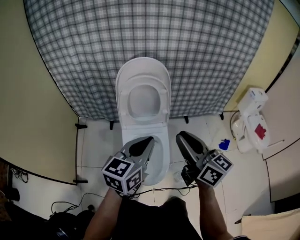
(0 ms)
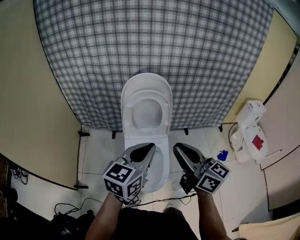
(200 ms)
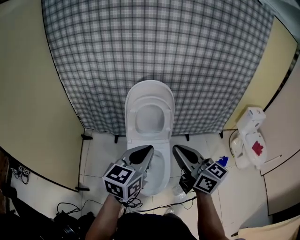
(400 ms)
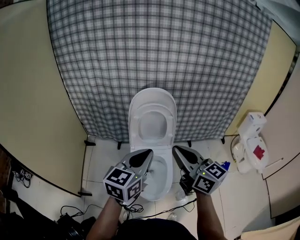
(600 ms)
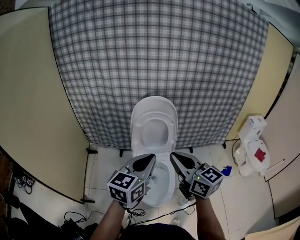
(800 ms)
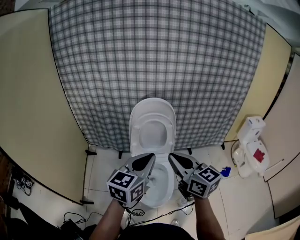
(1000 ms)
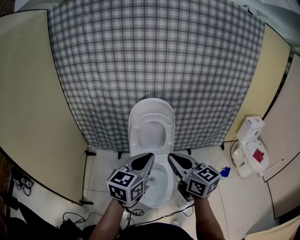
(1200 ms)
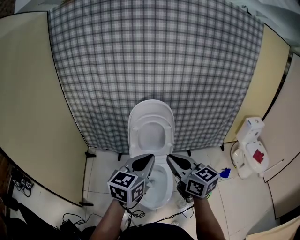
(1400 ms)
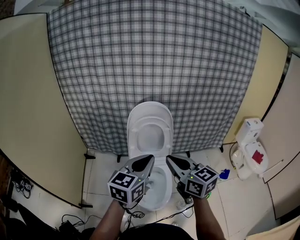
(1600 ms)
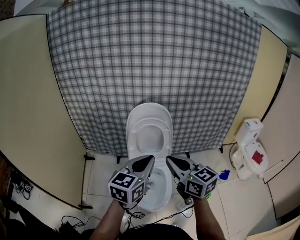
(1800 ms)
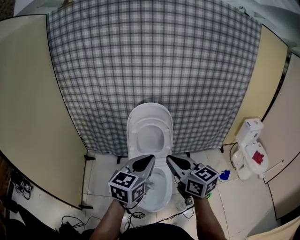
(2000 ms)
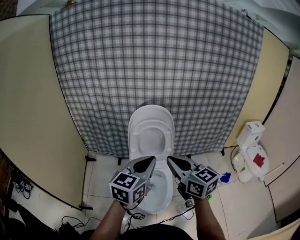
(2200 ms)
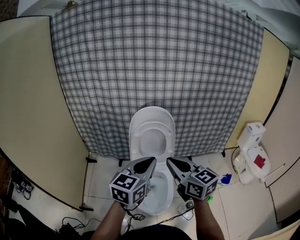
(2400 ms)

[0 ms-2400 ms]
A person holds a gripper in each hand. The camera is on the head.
0 ms to 1200 ms: The left gripper heads upward and backward, covering about 10 cm. The right gripper travels upward by approximately 10 cm.
1200 ms to 2400 ms: The right gripper travels to the left and back again, roughly 10 cm each way.

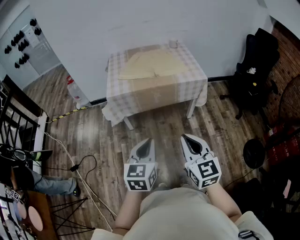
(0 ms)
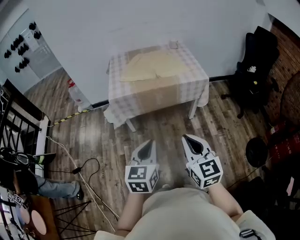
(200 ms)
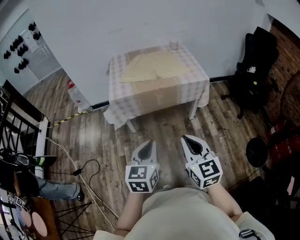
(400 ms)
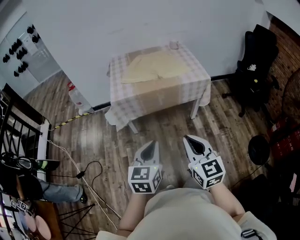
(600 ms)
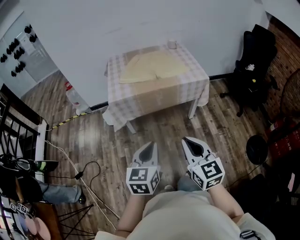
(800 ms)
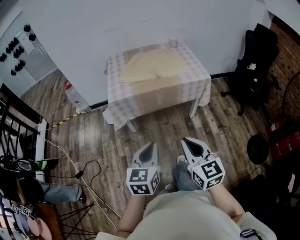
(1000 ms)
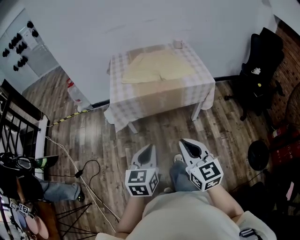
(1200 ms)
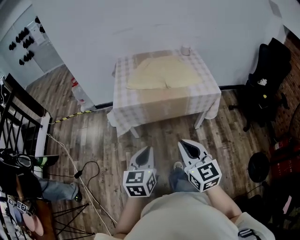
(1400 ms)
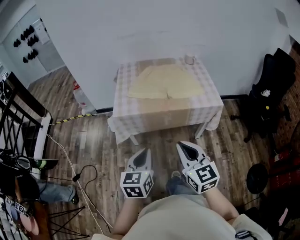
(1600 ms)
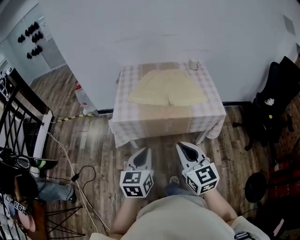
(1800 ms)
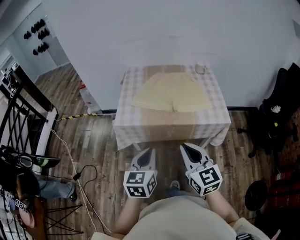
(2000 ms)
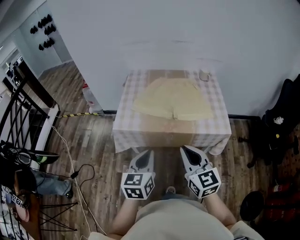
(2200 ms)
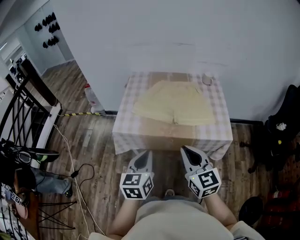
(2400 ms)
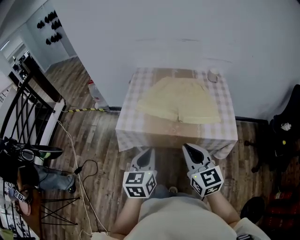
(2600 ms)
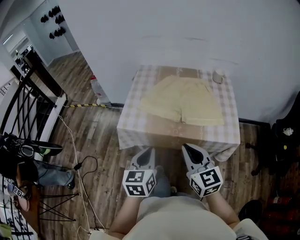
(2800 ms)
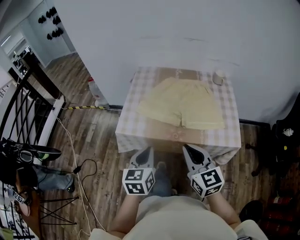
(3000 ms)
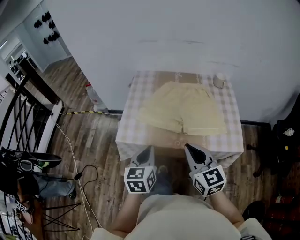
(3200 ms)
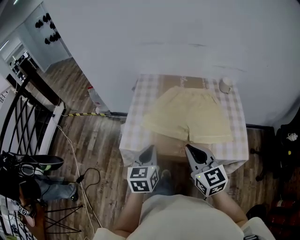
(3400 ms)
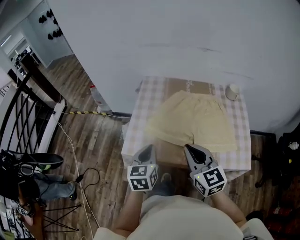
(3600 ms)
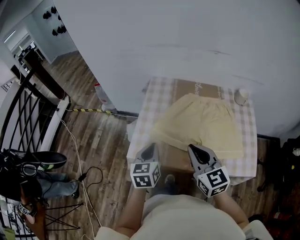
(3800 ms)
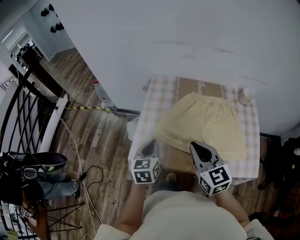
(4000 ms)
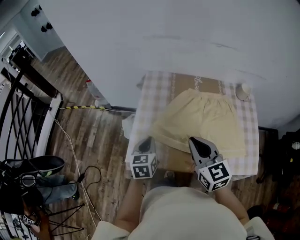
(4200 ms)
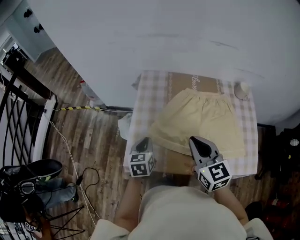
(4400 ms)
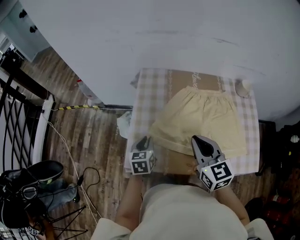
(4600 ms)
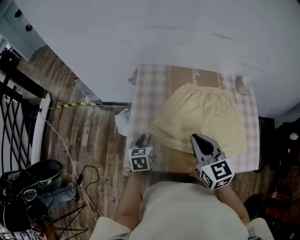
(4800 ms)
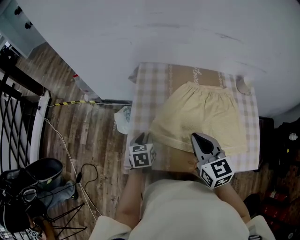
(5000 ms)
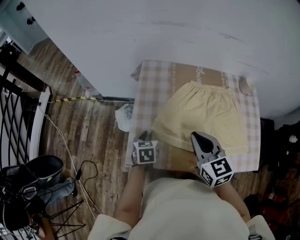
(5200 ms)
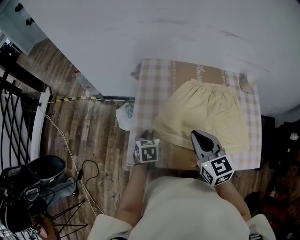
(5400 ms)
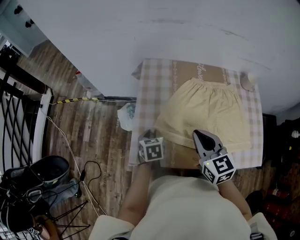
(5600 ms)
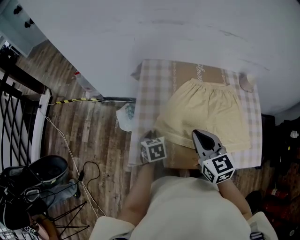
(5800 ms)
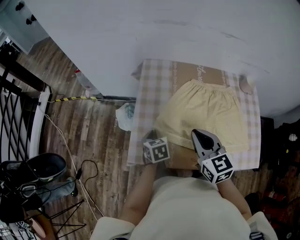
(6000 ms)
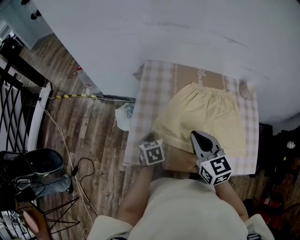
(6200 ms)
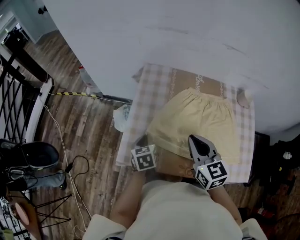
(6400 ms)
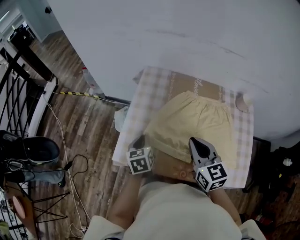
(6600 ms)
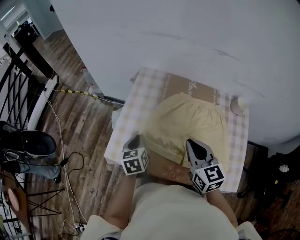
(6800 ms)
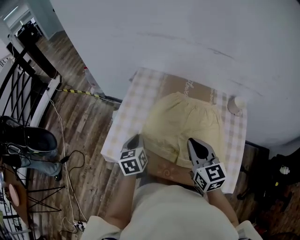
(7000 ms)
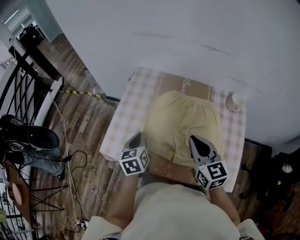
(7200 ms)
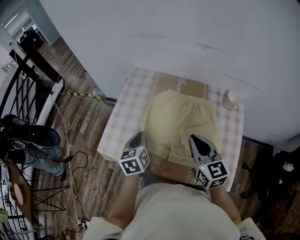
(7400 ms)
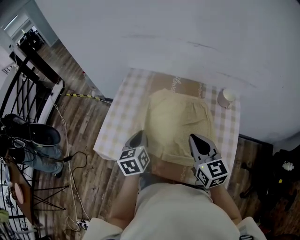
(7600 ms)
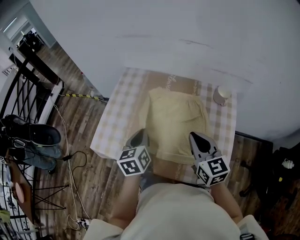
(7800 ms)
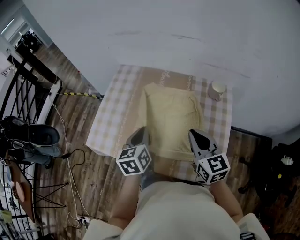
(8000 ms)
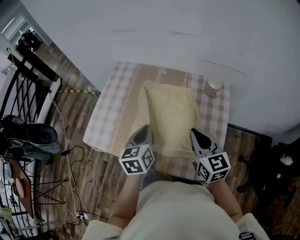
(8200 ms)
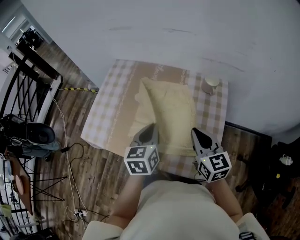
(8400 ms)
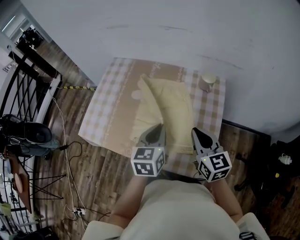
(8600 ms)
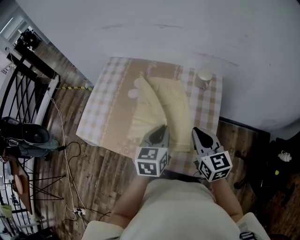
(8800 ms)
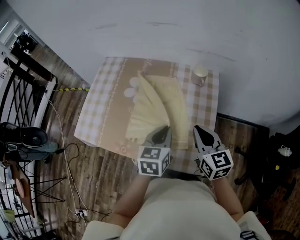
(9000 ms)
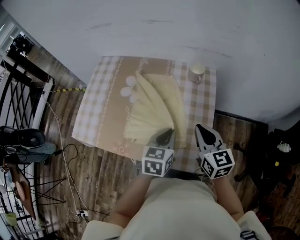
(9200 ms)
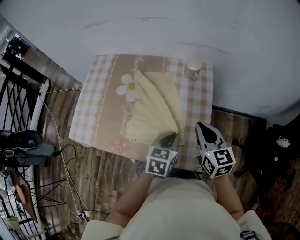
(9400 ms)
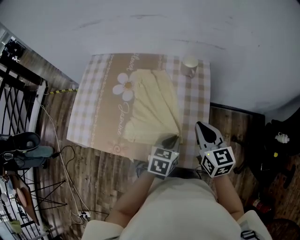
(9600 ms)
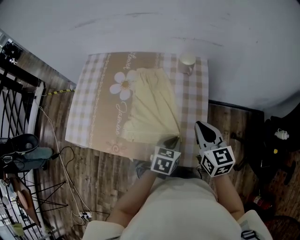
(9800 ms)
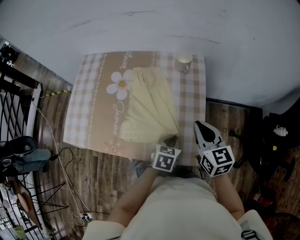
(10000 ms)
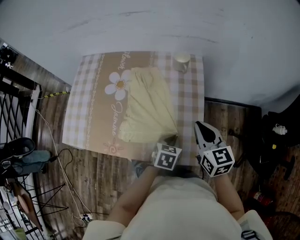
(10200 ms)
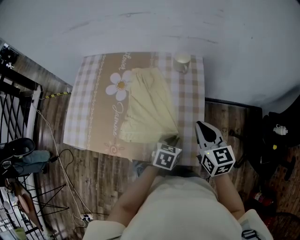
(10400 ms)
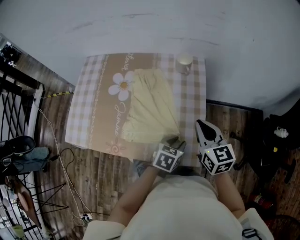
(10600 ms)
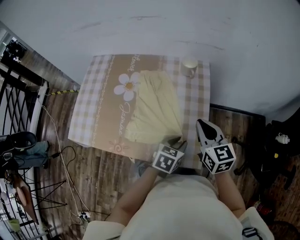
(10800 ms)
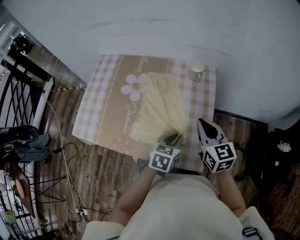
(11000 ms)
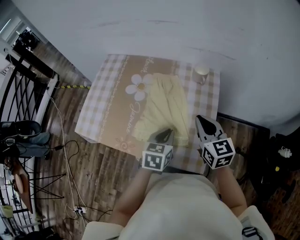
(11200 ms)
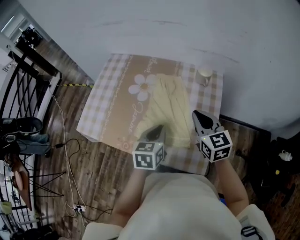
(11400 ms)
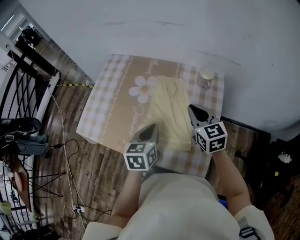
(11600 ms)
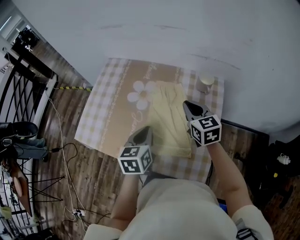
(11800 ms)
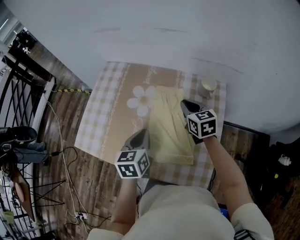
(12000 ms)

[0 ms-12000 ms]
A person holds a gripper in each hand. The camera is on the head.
0 ms to 1600 ms: Both grippers move forward, roughly 15 cm.
1600 ms to 3000 ms: Both grippers move forward, approximately 20 cm.
3000 ms to 4400 ms: The left gripper goes some 30 cm forward and downward, while the right gripper shifts approximately 25 cm forward.
4400 ms to 6000 ms: The left gripper heads downward, covering approximately 5 cm, and opens, then closes once more.
6000 ms to 7600 ms: The left gripper moves to the right, upward and backward, about 20 cm, and changes its angle by about 20 degrees. The right gripper heads to the right, covering some 20 cm.
7600 ms to 9000 ms: The left gripper is displaced to the right by roughly 25 cm, and swivels some 20 degrees. Meanwhile the right gripper is displaced to the right by about 15 cm.
9000 ms to 10400 ms: The left gripper travels downward and to the right by about 15 cm, and rotates approximately 30 degrees. The right gripper heads to the right, covering some 5 cm.
10400 ms to 12000 ms: The right gripper shifts by roughly 25 cm, while the left gripper ends up some 30 cm from where it was, changes its angle by roughly 40 degrees, and opens, then closes again.

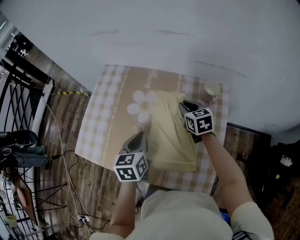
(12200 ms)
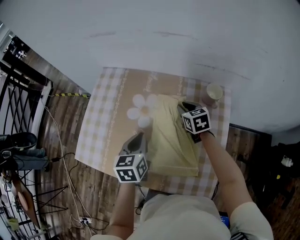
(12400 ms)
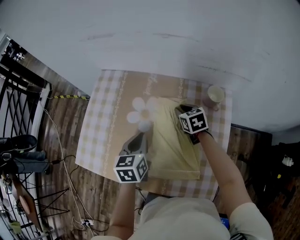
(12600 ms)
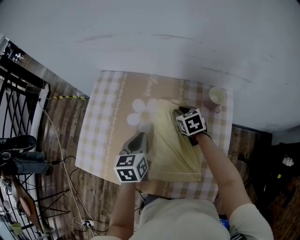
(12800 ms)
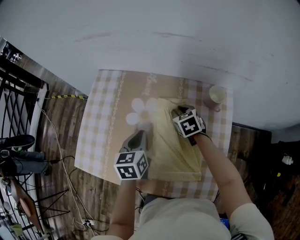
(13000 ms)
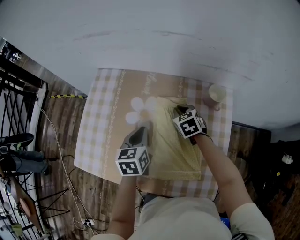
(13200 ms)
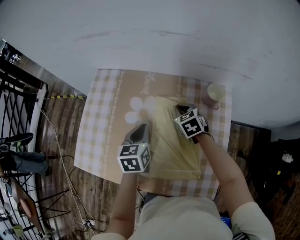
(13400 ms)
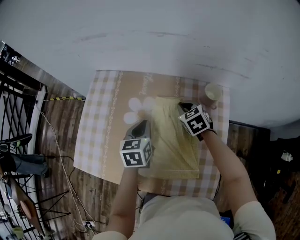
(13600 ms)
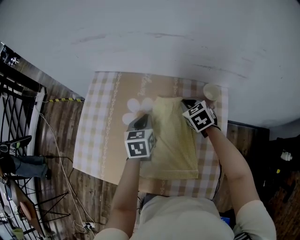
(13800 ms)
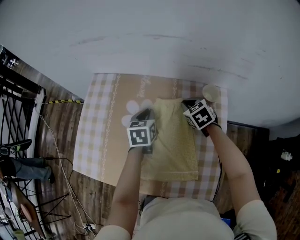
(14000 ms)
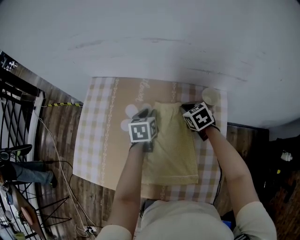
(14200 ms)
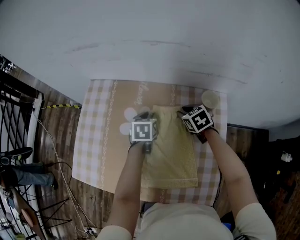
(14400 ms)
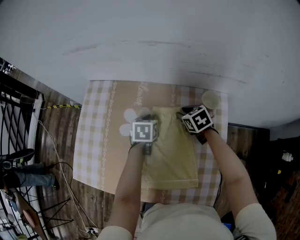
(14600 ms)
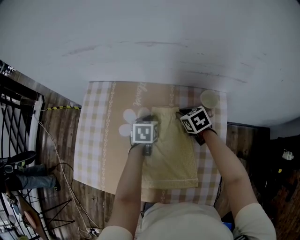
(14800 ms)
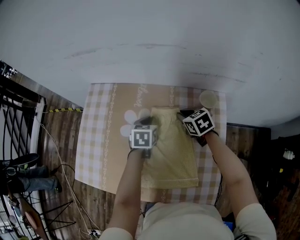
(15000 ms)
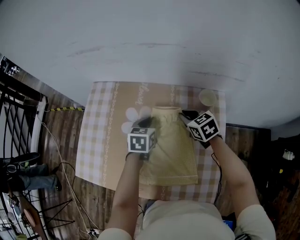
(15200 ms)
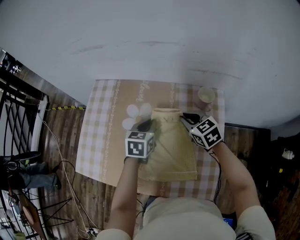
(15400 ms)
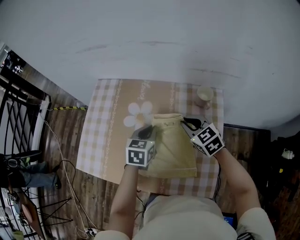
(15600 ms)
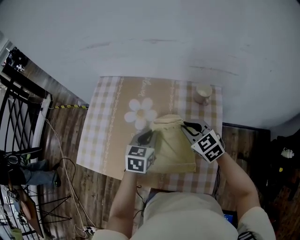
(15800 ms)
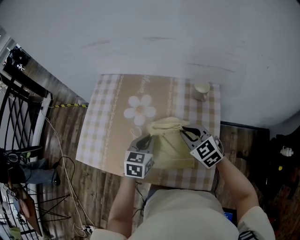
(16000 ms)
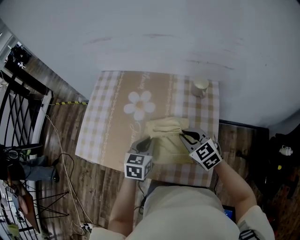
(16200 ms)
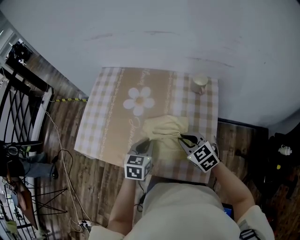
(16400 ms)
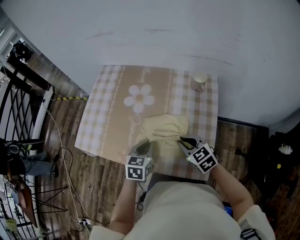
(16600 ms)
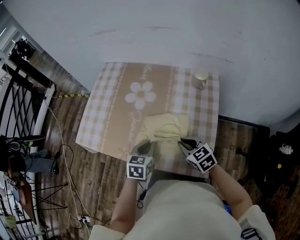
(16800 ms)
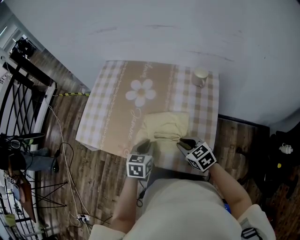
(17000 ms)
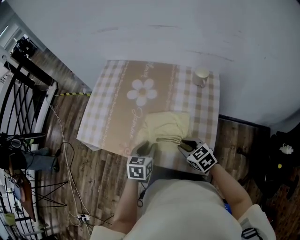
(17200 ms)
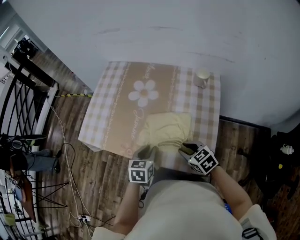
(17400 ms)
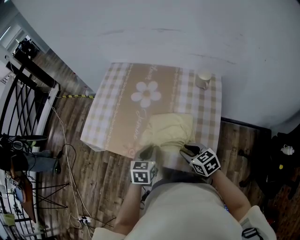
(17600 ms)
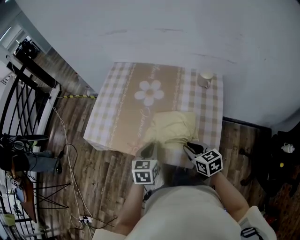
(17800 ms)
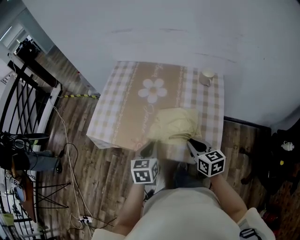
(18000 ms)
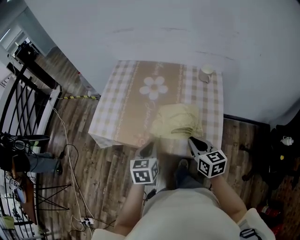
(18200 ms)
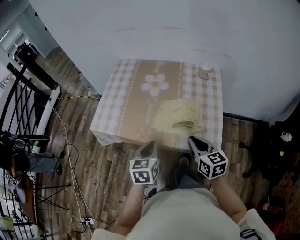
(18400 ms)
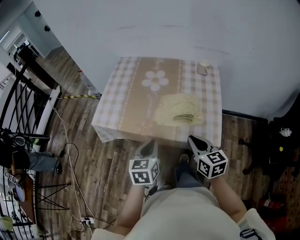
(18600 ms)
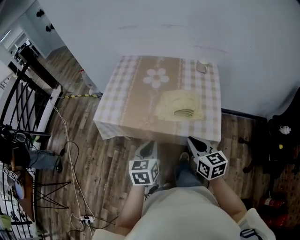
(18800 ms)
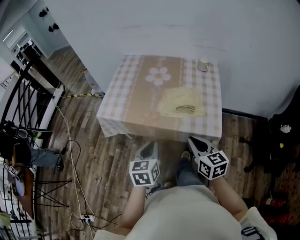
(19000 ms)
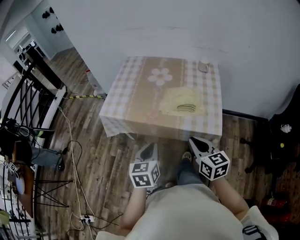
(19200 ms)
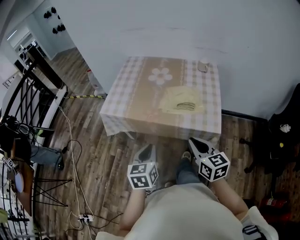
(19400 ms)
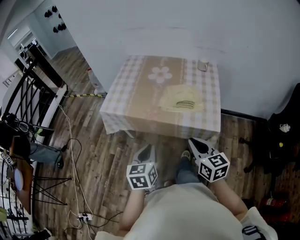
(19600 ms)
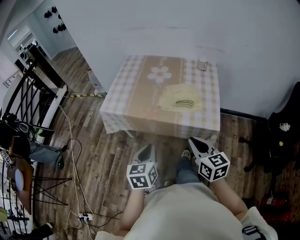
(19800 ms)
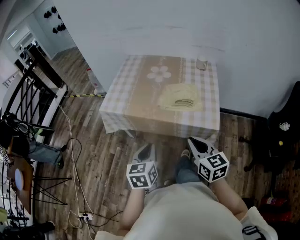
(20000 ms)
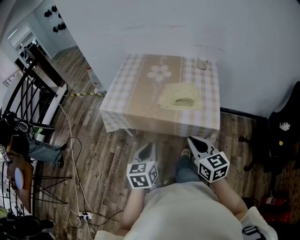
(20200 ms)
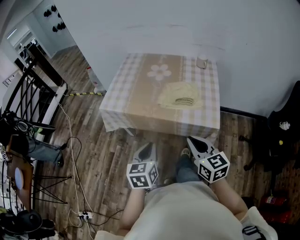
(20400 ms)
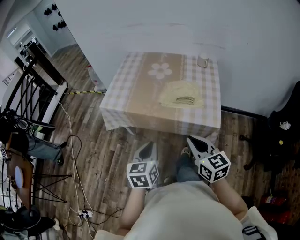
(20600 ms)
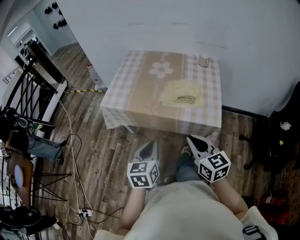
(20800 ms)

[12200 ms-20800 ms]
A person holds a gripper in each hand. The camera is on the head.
12200 ms to 13600 ms: The left gripper goes about 10 cm forward.
13600 ms to 15000 ms: The left gripper travels forward, downward and to the right by some 10 cm.
15000 ms to 16600 ms: The two grippers go roughly 25 cm backward.
16600 ms to 18000 ms: The left gripper heads to the left and backward, covering some 10 cm, while the right gripper heads backward, covering roughly 5 cm, and changes its angle by about 30 degrees.
18000 ms to 19400 ms: Both grippers move backward and to the left, approximately 20 cm.
19400 ms to 20800 ms: The grippers move only a little.
